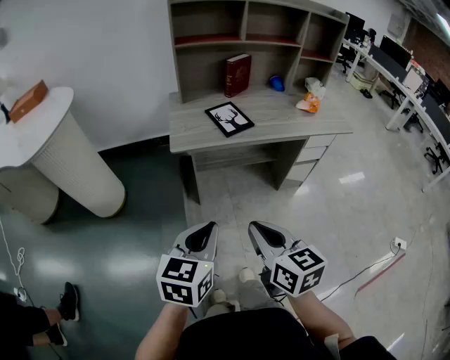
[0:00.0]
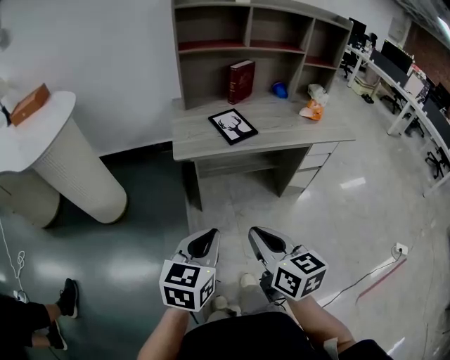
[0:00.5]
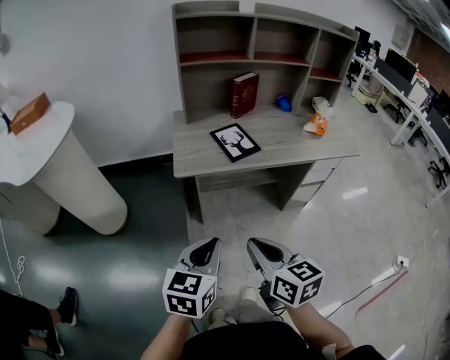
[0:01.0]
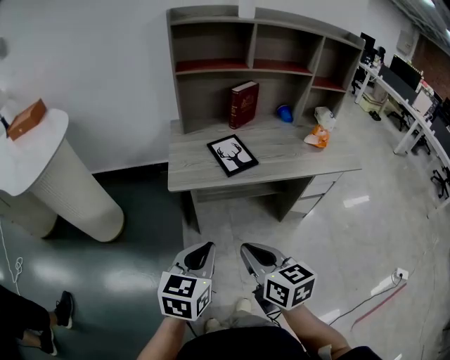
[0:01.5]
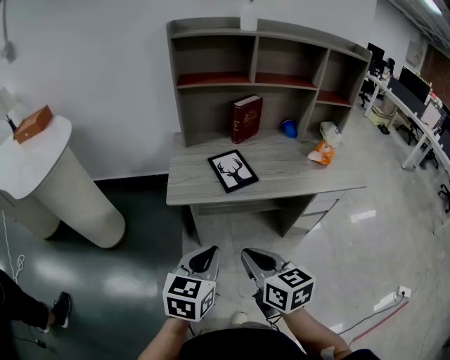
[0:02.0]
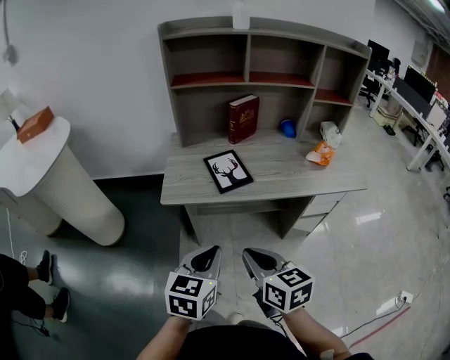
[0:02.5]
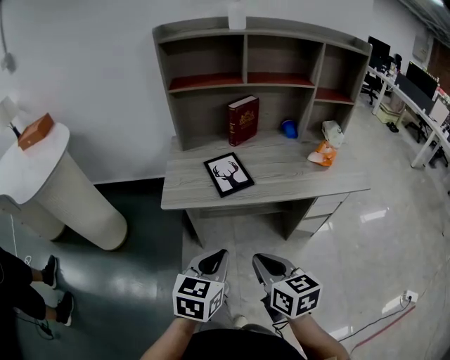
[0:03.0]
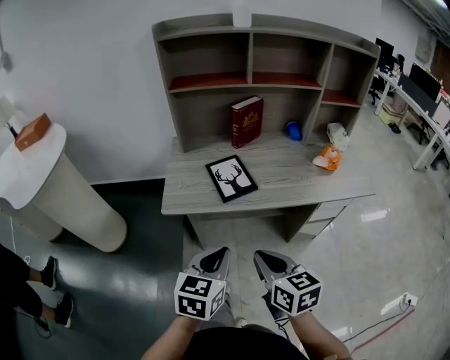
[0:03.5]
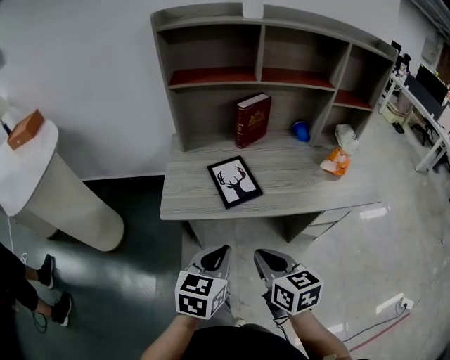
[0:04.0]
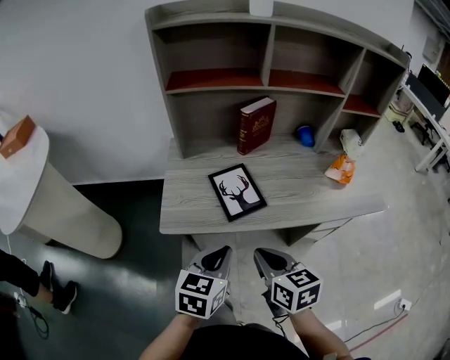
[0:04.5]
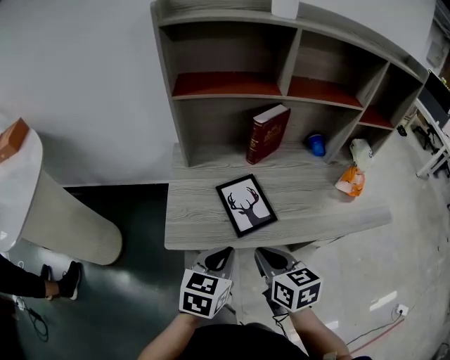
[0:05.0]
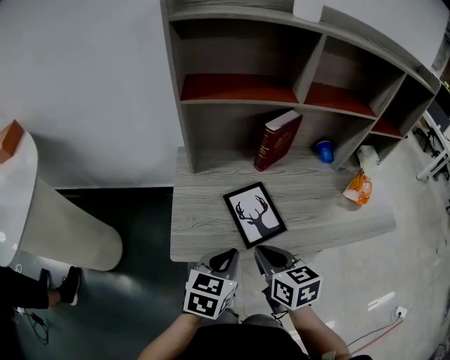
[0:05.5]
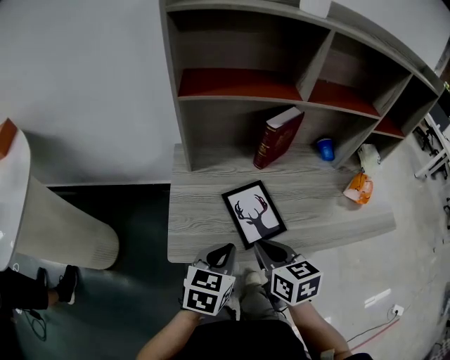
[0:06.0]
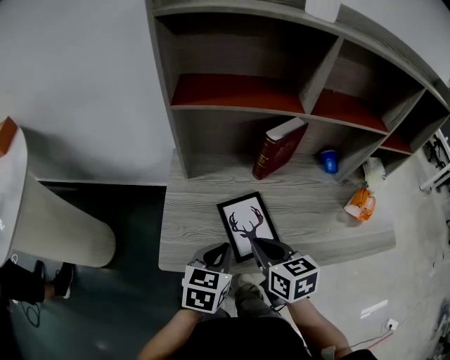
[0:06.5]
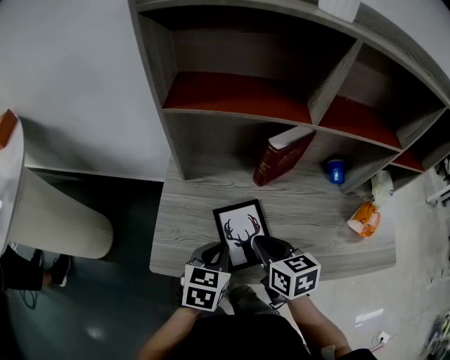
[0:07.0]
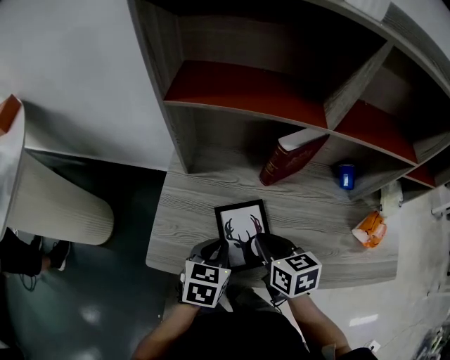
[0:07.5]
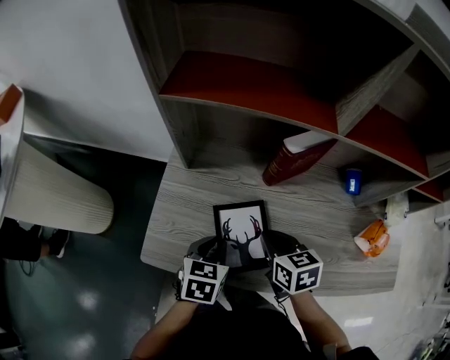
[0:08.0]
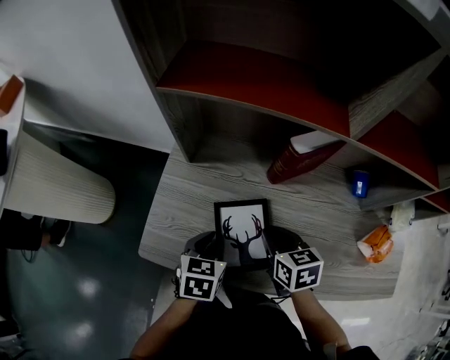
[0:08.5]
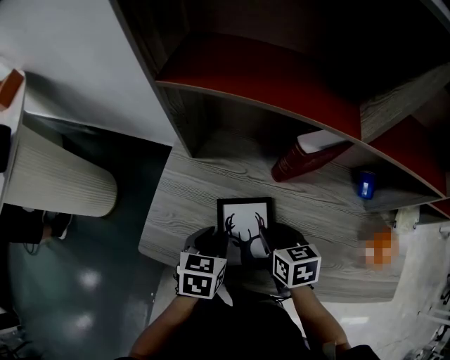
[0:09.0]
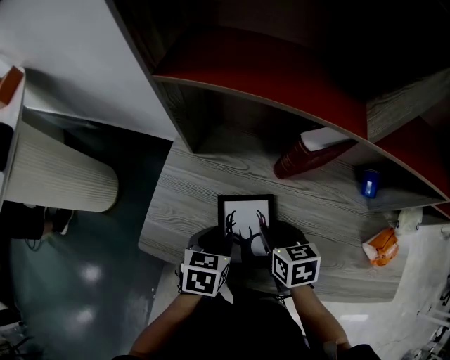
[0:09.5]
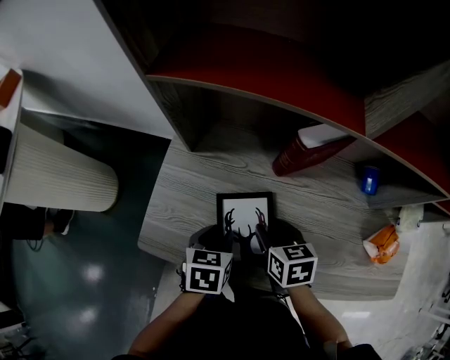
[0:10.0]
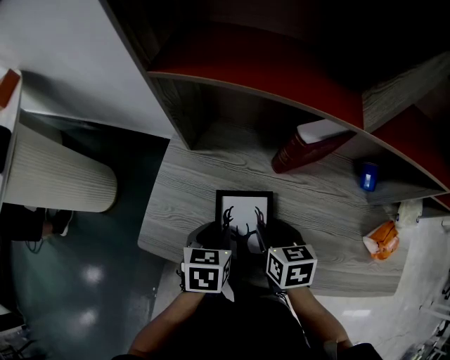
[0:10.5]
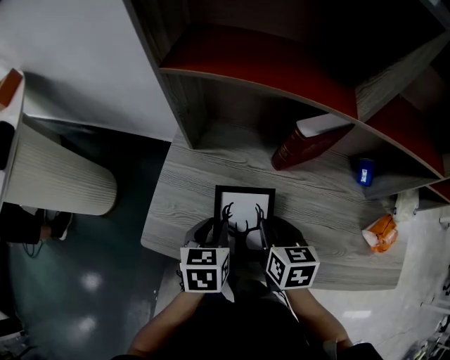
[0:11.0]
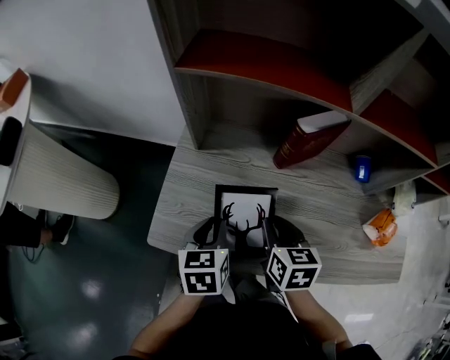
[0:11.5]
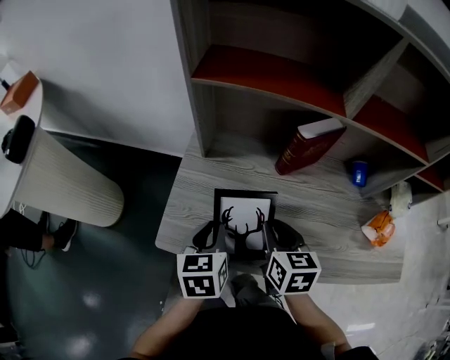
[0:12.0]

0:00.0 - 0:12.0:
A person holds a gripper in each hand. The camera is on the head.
0:00.0 - 0:02.0: The right gripper goes roughly 15 cm forward. The left gripper travels forward and to the right by approximately 15 cm.
0:02.0 - 0:04.0: Both grippers move forward and to the right, some 10 cm.
0:04.0 - 0:06.0: The grippers both shift forward by about 20 cm.
0:06.0 - 0:08.0: The left gripper travels forward and downward by roughly 15 cm, and changes its angle by approximately 20 degrees, while the right gripper moves forward, to the right and downward, approximately 15 cm.
0:08.0 - 0:10.0: The left gripper opens. Meanwhile the right gripper opens its fingers.
0:10.0 - 0:12.0: The left gripper heads upward and to the left, covering some 10 cm, while the right gripper is displaced upward by about 10 cm, and closes up.

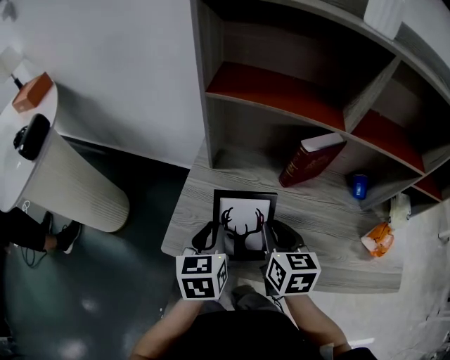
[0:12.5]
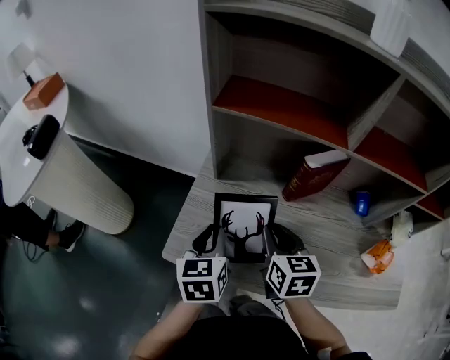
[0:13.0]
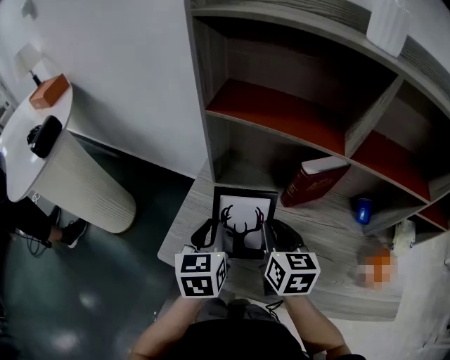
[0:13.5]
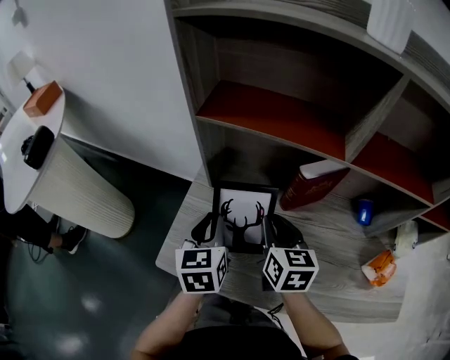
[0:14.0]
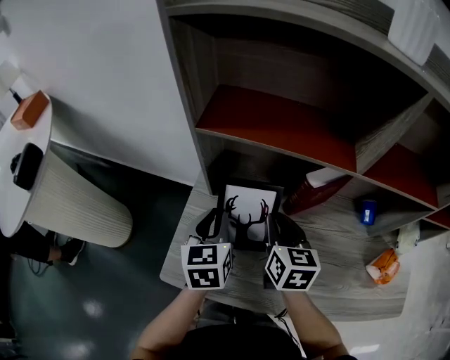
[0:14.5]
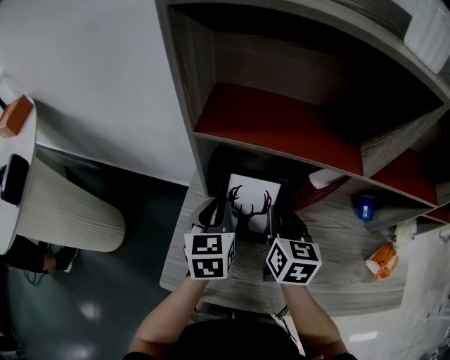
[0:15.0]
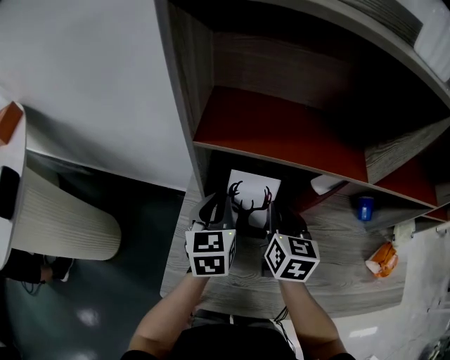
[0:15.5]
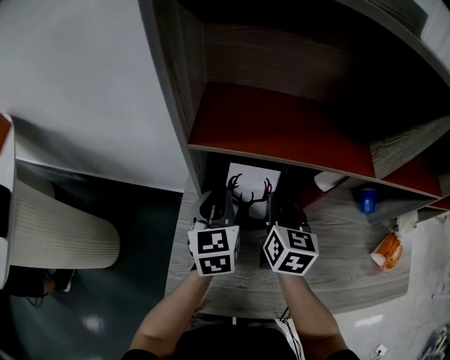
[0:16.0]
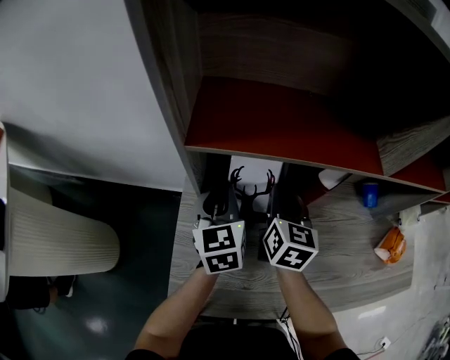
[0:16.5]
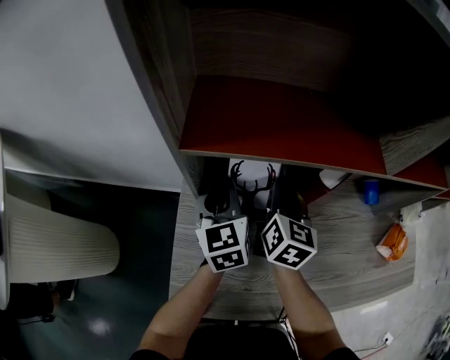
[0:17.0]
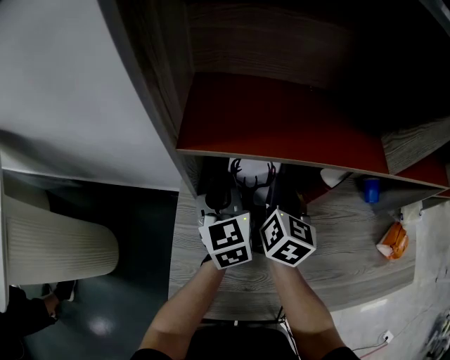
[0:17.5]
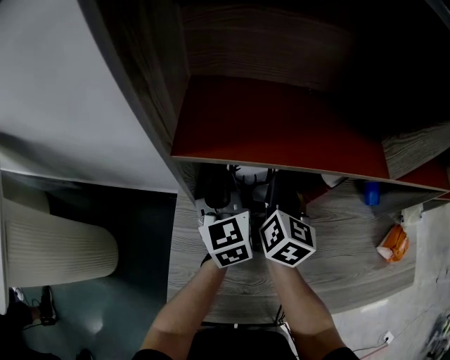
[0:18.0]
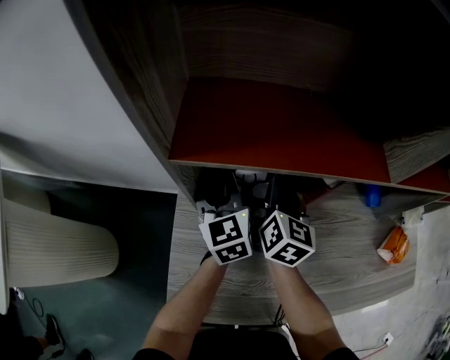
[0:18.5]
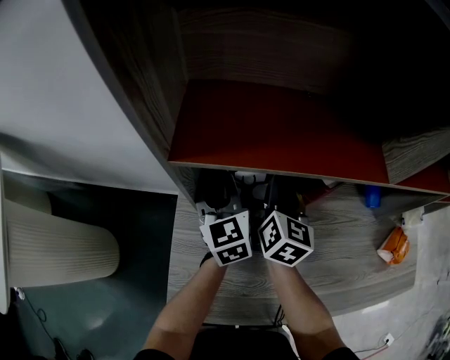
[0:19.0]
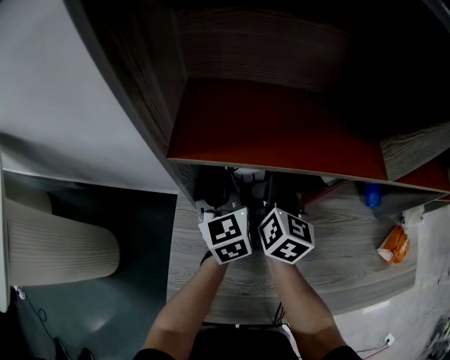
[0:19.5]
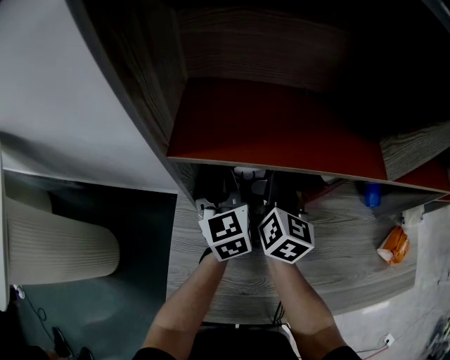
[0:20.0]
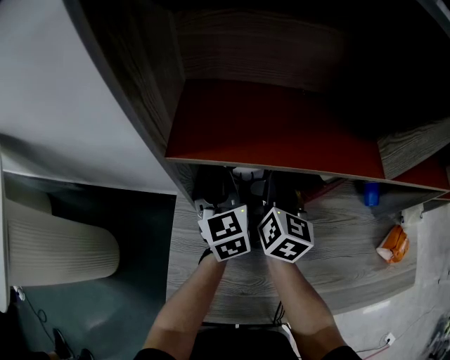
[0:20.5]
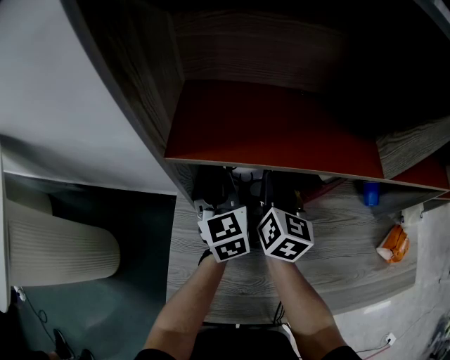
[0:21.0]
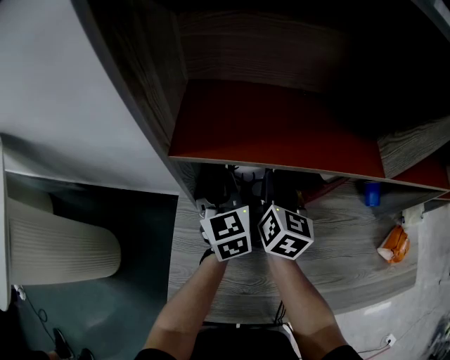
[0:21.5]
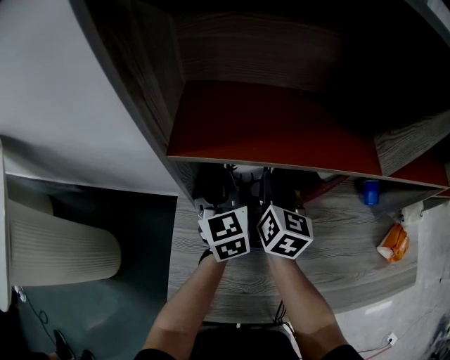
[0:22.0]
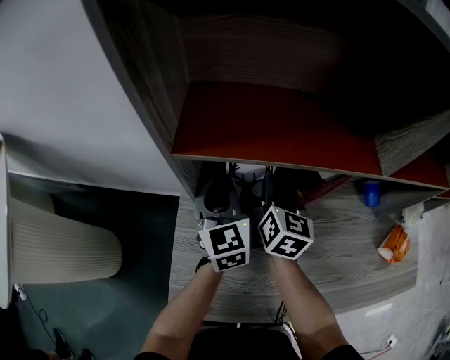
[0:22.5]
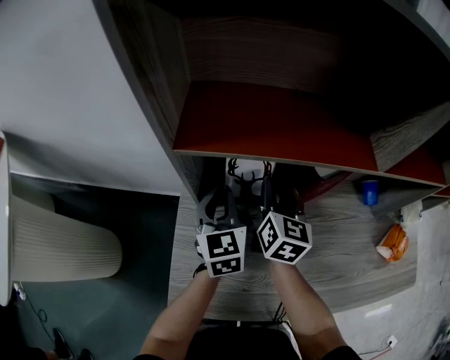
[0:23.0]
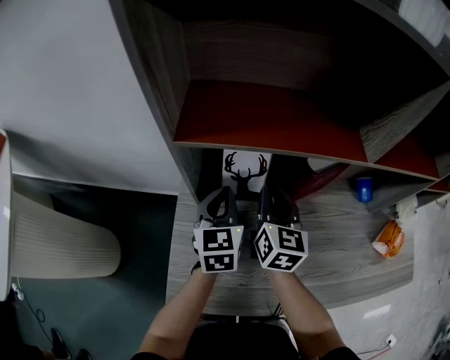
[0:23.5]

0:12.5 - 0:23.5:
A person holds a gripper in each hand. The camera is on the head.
0:12.5 - 0:14.5: The two grippers go some 10 cm forward.
0:14.5 - 0:16.0: The grippers both shift forward by about 10 cm.
0:16.0 - 0:18.0: The left gripper is displaced forward by about 5 cm.
0:18.0 - 0:20.0: Both grippers stay about where they are.
0:20.0 - 0:21.5: The two grippers keep their place.
0:21.5 - 0:23.5: Both grippers move backward, roughly 5 cm.

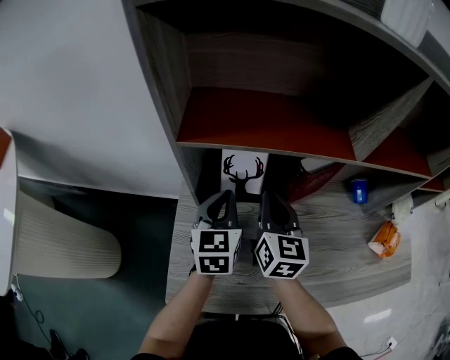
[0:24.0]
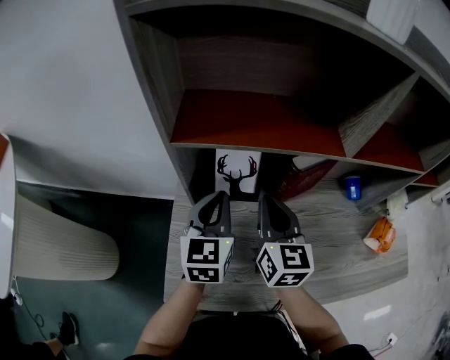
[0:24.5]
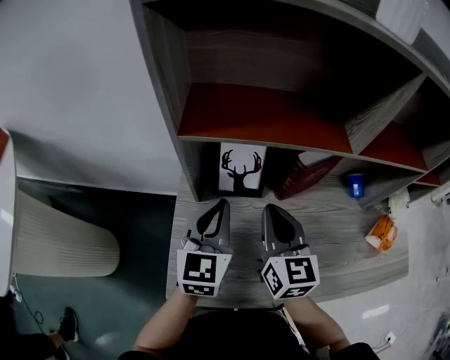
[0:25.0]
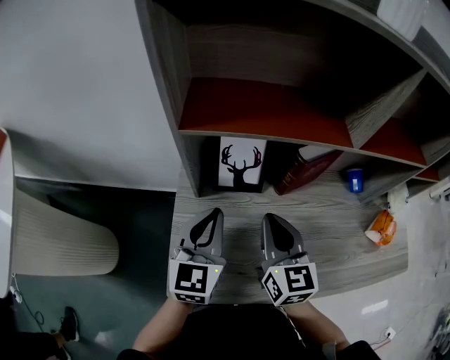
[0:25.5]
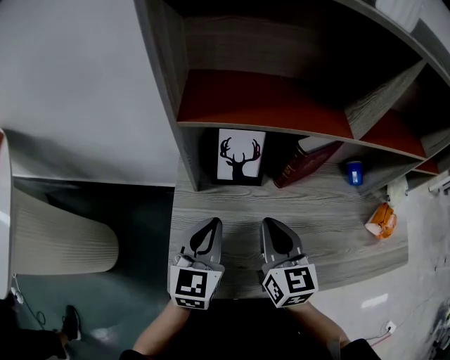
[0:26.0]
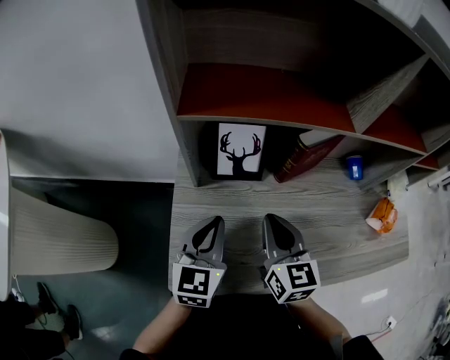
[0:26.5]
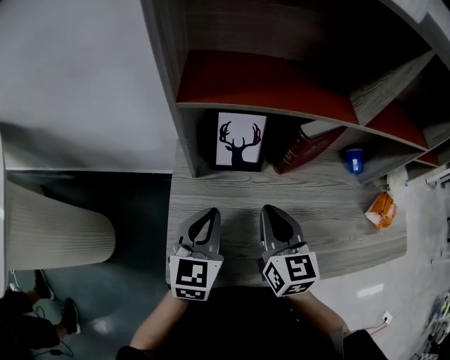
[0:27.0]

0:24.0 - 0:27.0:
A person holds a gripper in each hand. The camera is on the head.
0:24.0 - 0:25.5: Both grippers travel together backward, roughly 10 cm.
0:25.5 - 0:27.0: The left gripper heads downward, covering some 5 cm.

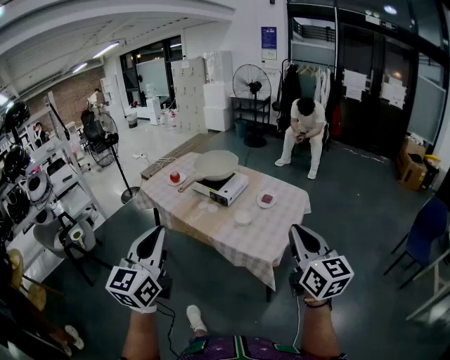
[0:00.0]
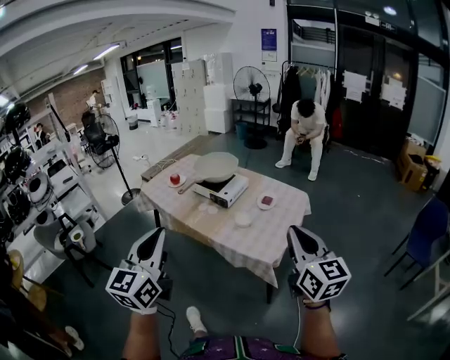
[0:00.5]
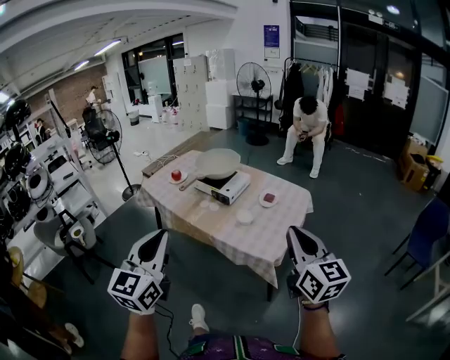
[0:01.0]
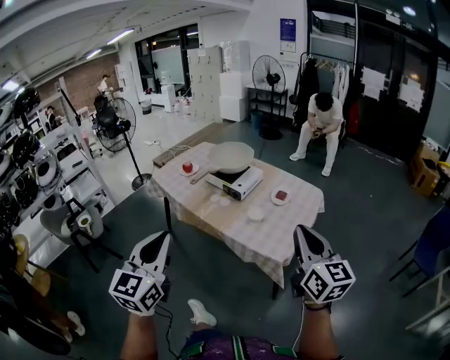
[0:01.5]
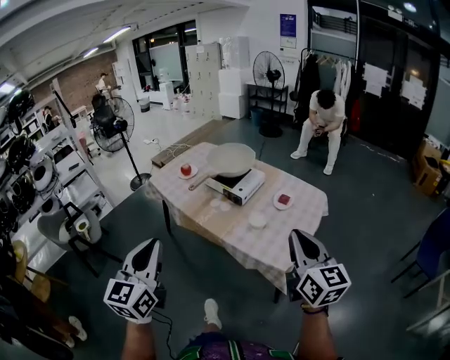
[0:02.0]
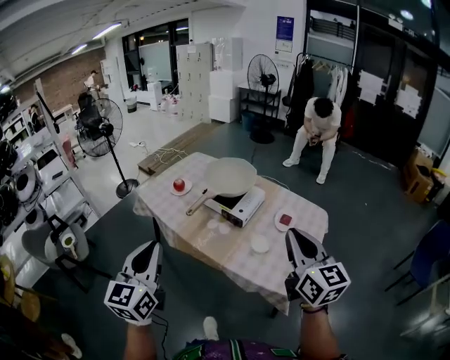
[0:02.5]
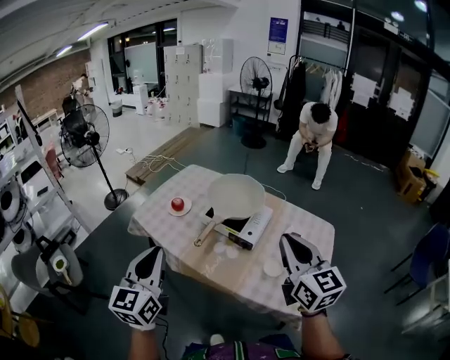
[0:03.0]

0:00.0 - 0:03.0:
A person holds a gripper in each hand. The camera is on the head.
0:00.0 - 0:01.5: The grippers stay close to where they were, moving slightly.
0:01.5 - 0:03.0: Both grippers are carried forward and to the left, about 40 cm.
